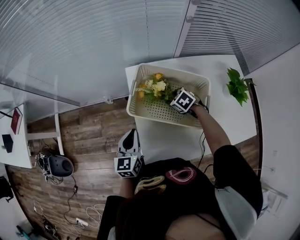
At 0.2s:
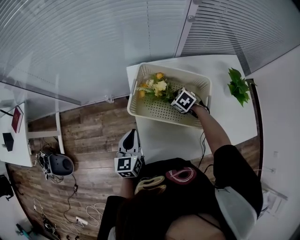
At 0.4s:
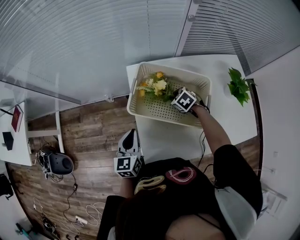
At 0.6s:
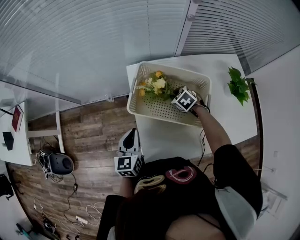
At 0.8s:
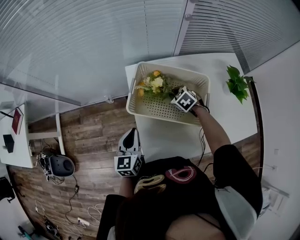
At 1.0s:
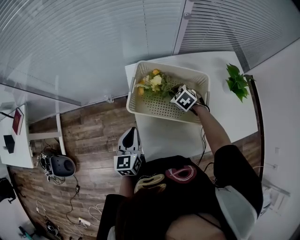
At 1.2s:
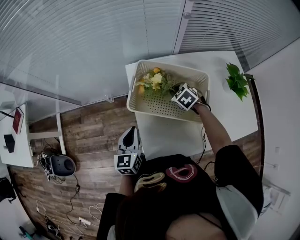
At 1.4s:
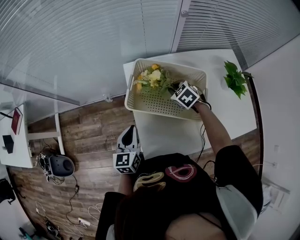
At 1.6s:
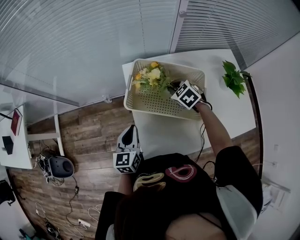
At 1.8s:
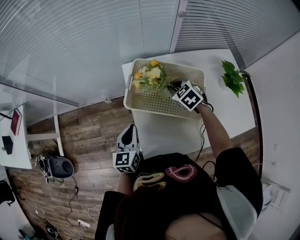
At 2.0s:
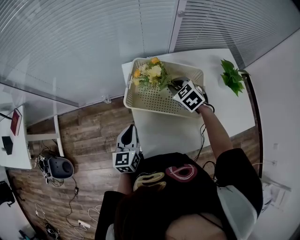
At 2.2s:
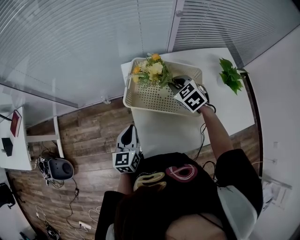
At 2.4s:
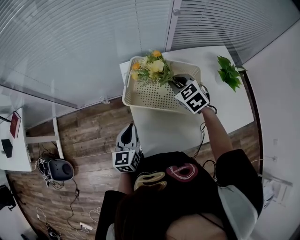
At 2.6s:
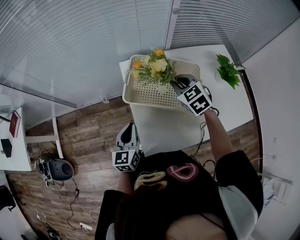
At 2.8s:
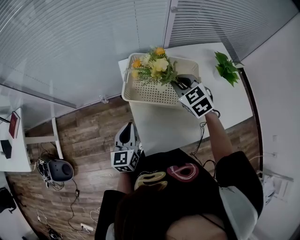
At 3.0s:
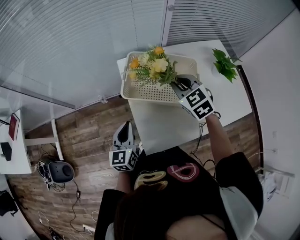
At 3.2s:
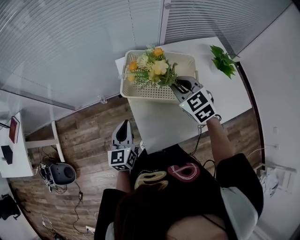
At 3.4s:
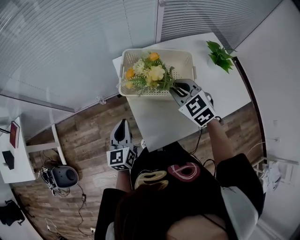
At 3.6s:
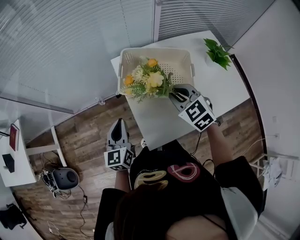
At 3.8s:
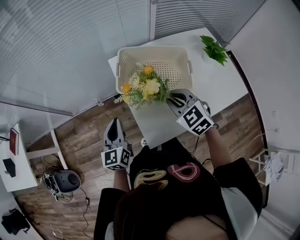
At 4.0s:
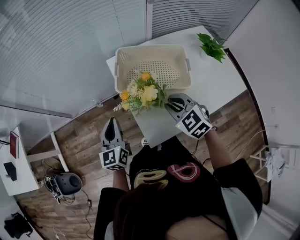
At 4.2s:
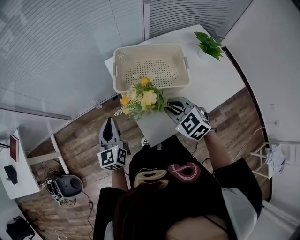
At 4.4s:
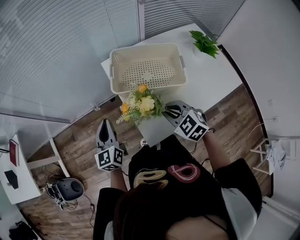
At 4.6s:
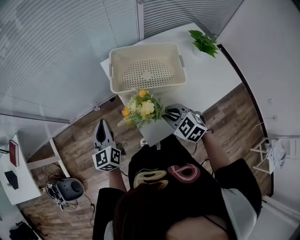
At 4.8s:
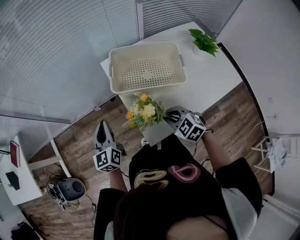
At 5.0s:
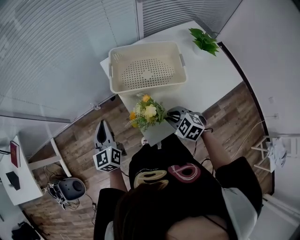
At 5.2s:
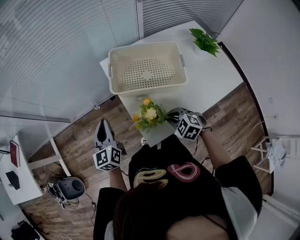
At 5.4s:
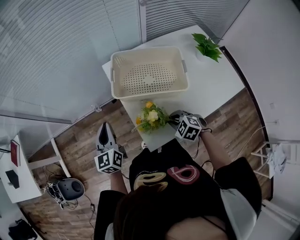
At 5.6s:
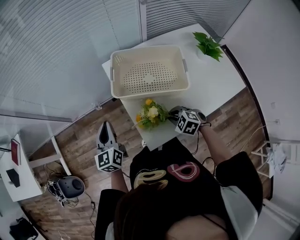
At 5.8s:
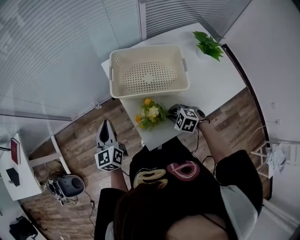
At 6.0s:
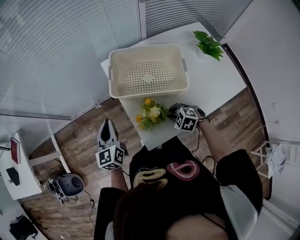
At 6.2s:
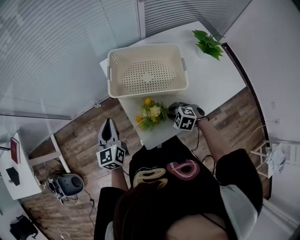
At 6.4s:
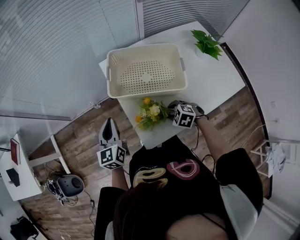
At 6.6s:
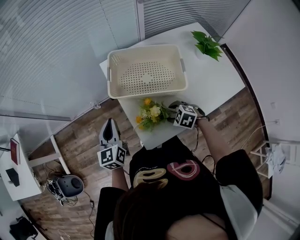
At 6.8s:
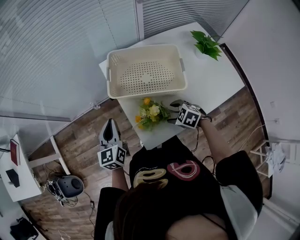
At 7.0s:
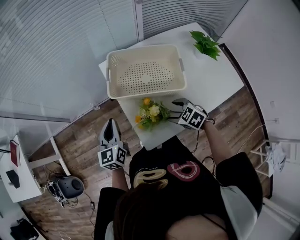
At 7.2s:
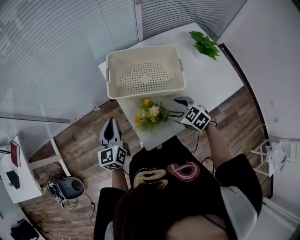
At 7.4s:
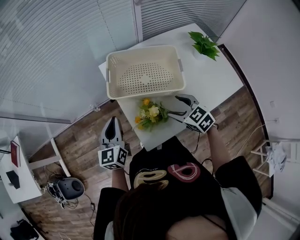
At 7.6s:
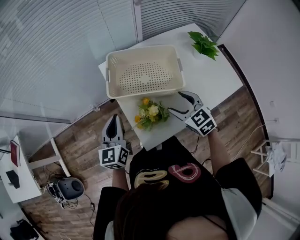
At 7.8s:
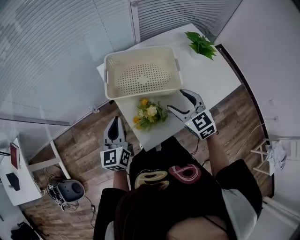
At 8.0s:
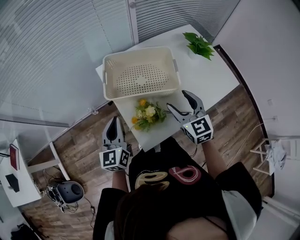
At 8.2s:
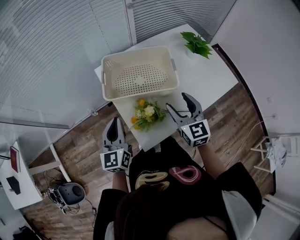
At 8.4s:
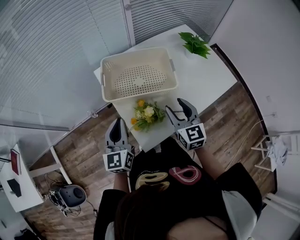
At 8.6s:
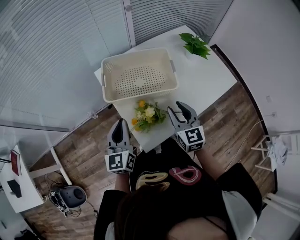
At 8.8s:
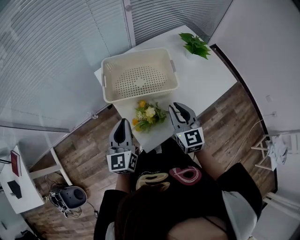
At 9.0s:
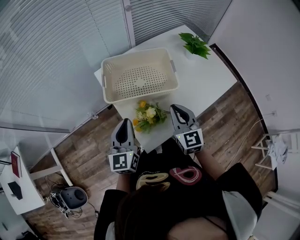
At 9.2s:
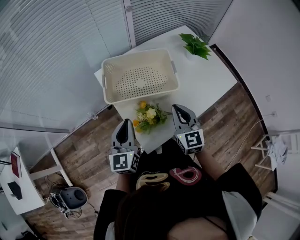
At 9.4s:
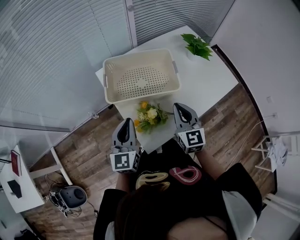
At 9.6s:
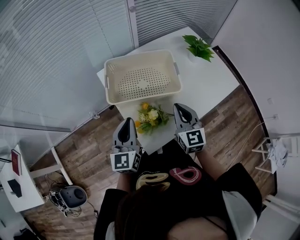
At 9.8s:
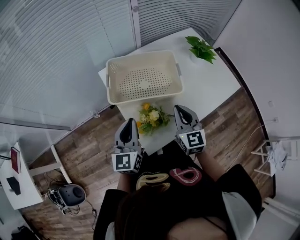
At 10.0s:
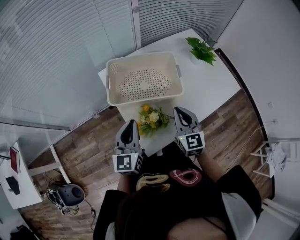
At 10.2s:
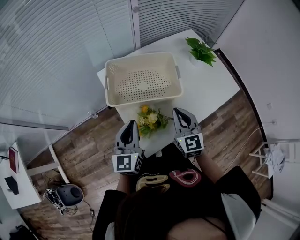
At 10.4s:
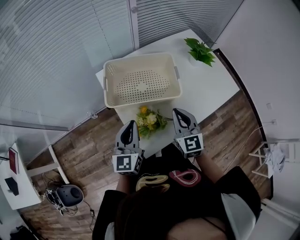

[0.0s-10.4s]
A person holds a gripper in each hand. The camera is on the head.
0.0s to 1.4s: The right gripper goes roughly 5 cm upward, and closes.
1.4s to 3.0s: The right gripper shifts approximately 15 cm upward and backward, and turns by about 20 degrees.
3.0s to 4.4s: The left gripper heads to the left, covering about 10 cm, while the right gripper is displaced backward by about 15 cm.
4.4s to 6.0s: The right gripper moves downward, roughly 15 cm, and rotates some 30 degrees.
6.0s to 7.4s: The right gripper is displaced upward by some 10 cm, turns by approximately 30 degrees, and opens.
7.4s to 9.0s: The right gripper shifts roughly 5 cm upward, turns by about 40 degrees, and closes up. The left gripper moves to the right, some 5 cm.
9.0s to 10.4s: The grippers make only small movements.

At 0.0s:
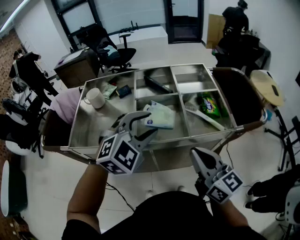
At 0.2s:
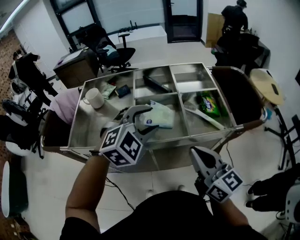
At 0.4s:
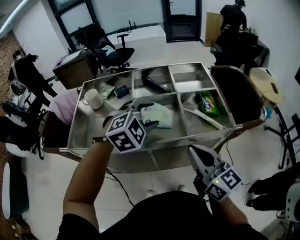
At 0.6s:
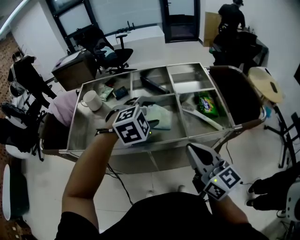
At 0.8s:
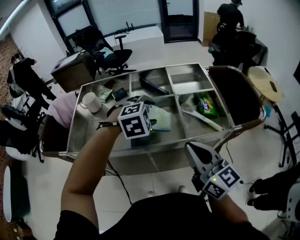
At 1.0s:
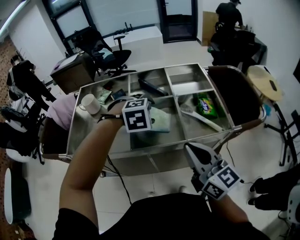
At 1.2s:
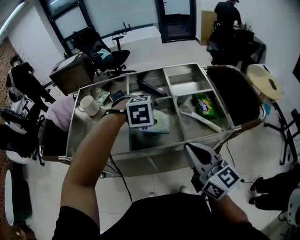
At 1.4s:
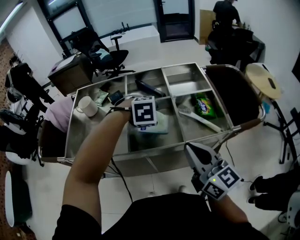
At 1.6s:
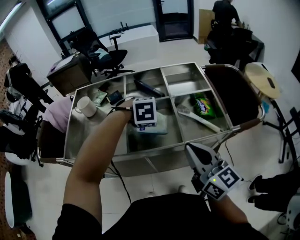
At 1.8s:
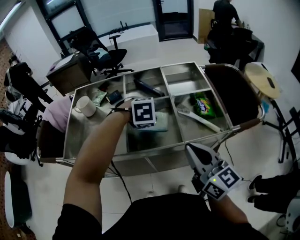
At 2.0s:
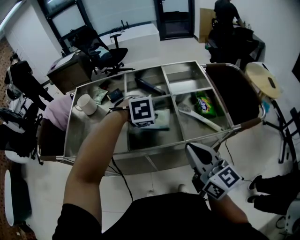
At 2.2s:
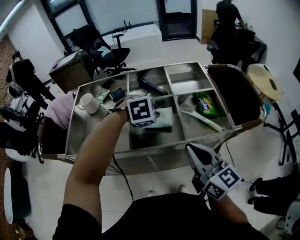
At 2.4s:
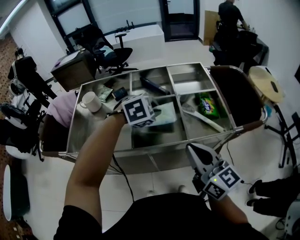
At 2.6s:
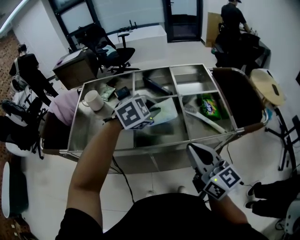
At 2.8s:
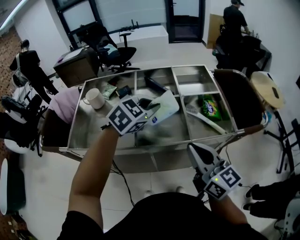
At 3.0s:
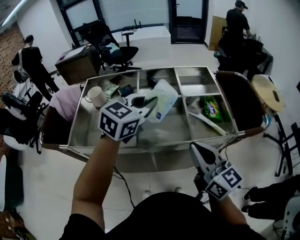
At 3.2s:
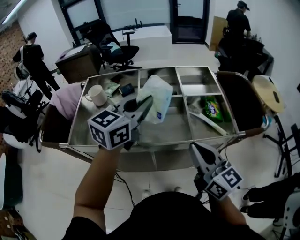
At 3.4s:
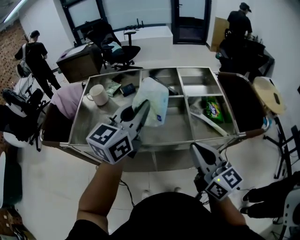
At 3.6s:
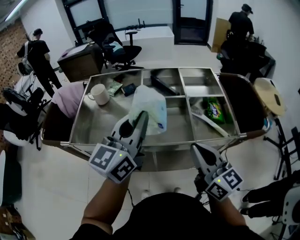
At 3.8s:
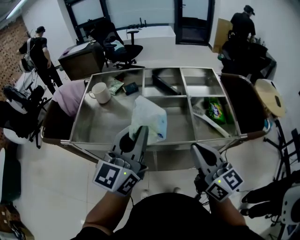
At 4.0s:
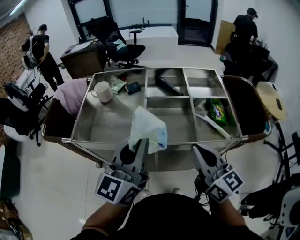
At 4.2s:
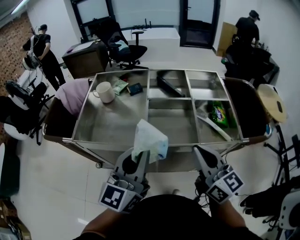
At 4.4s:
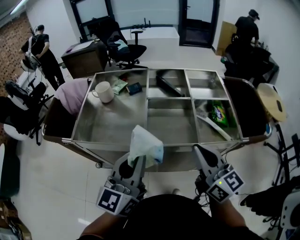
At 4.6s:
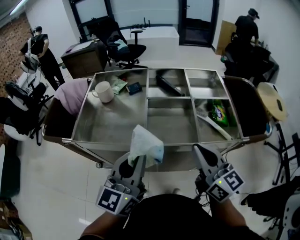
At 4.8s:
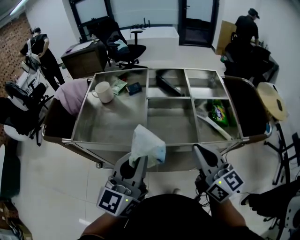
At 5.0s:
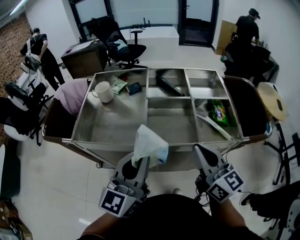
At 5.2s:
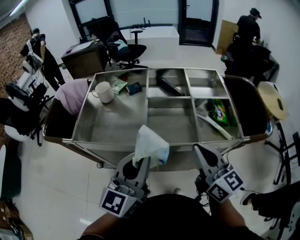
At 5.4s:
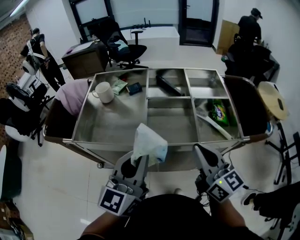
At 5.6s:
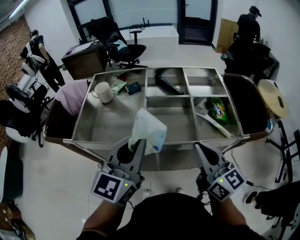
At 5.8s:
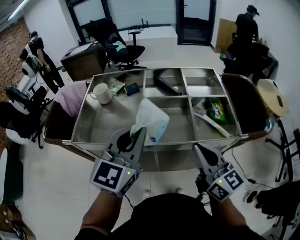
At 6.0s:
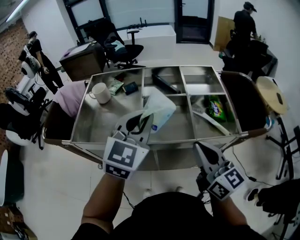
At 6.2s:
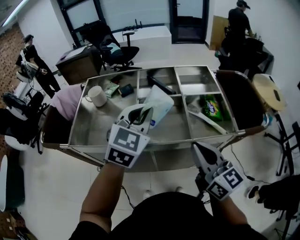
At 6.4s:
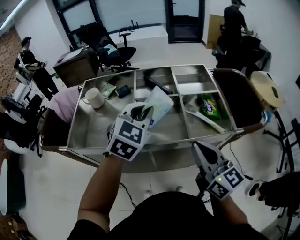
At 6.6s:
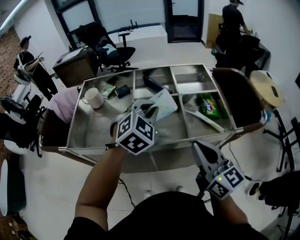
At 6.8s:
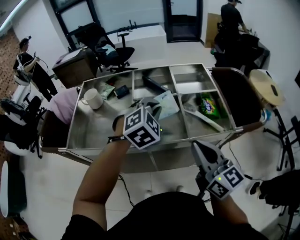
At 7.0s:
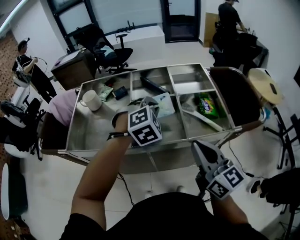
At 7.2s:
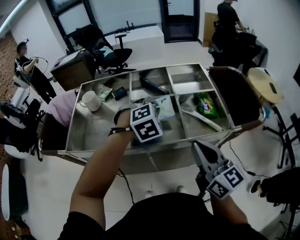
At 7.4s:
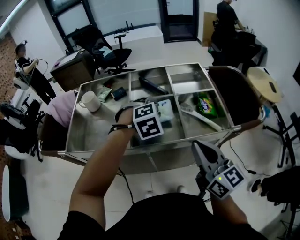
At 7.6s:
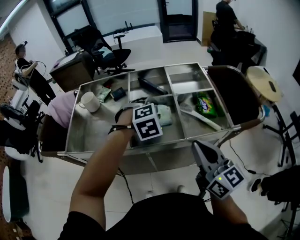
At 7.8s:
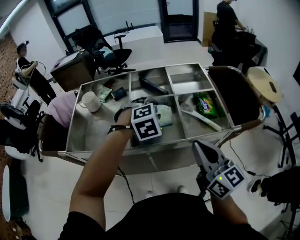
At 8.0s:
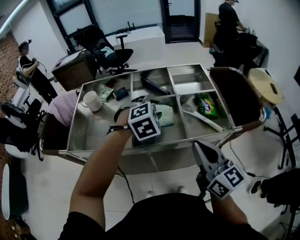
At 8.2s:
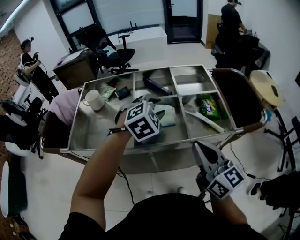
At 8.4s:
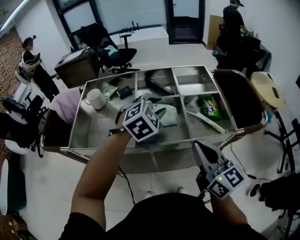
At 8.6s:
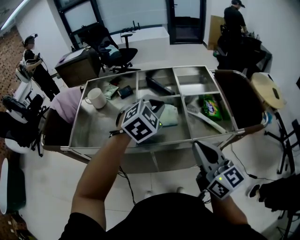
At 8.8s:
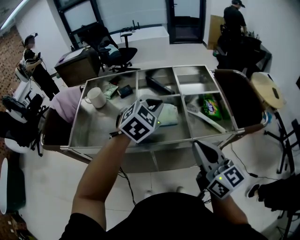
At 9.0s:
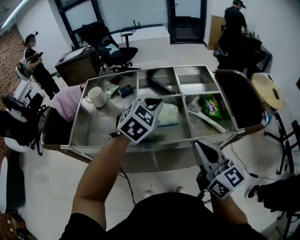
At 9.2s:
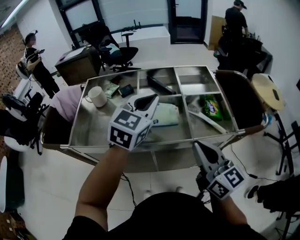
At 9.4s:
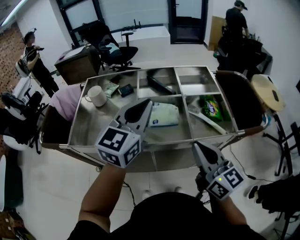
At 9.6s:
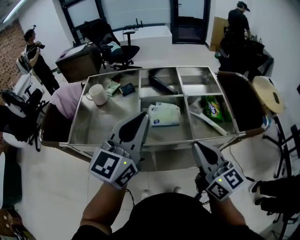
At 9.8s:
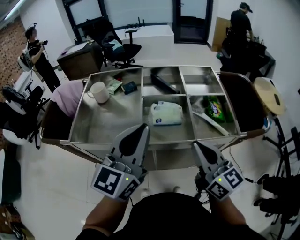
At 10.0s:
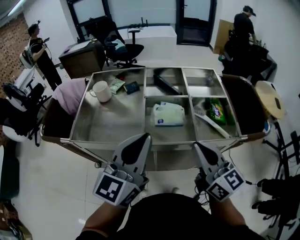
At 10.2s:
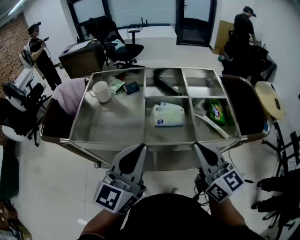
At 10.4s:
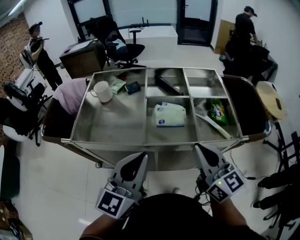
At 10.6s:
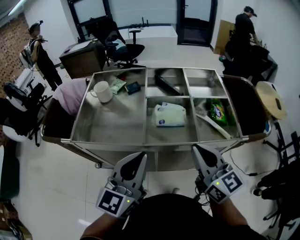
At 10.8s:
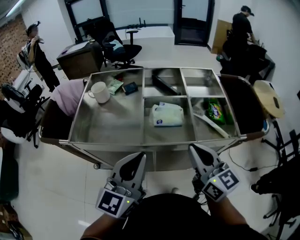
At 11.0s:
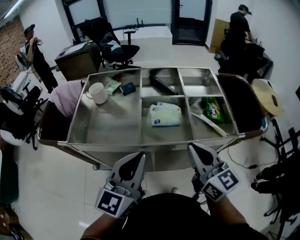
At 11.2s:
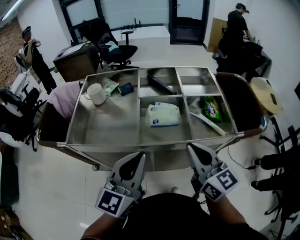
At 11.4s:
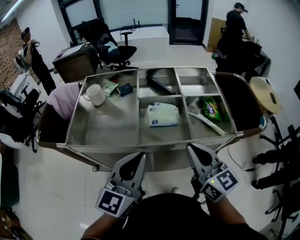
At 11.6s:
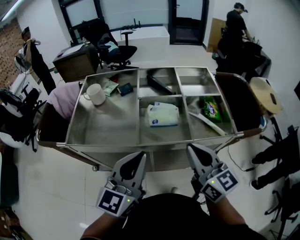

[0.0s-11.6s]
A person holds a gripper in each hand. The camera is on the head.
0.0s to 1.4s: The left gripper shifts roughly 15 cm downward and forward, and points its fingers some 40 degrees further downward.
1.4s to 2.8s: The left gripper moves upward, approximately 10 cm, tilts its fingers roughly 40 degrees upward, and closes up.
2.8s to 4.4s: The left gripper shifts about 20 cm backward and to the left, and angles its fingers upward, by some 40 degrees.
4.4s to 5.8s: The left gripper is displaced forward by about 5 cm, and swivels approximately 20 degrees.
5.8s to 7.2s: The left gripper shifts approximately 20 cm forward, downward and to the right, and points its fingers some 40 degrees further downward.
7.2s to 8.8s: The left gripper turns by roughly 30 degrees, and opens and closes again.
8.8s to 10.2s: The left gripper travels backward and to the left by roughly 20 cm, and angles its fingers upward, by about 40 degrees.
10.2s to 11.6s: The grippers make only small movements.

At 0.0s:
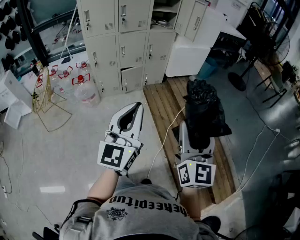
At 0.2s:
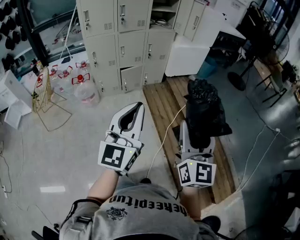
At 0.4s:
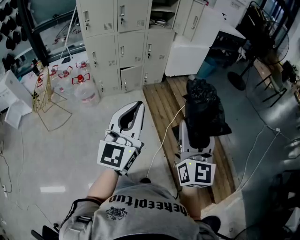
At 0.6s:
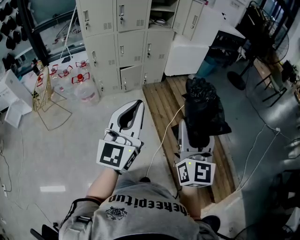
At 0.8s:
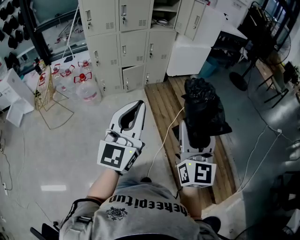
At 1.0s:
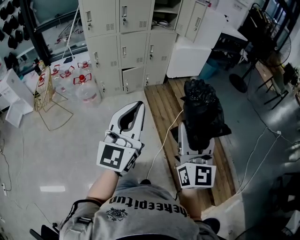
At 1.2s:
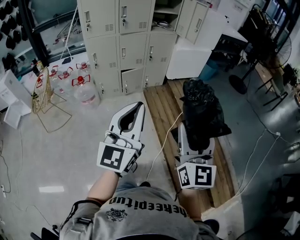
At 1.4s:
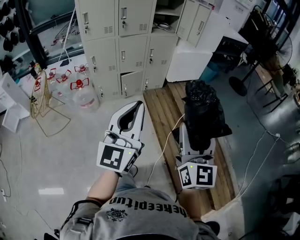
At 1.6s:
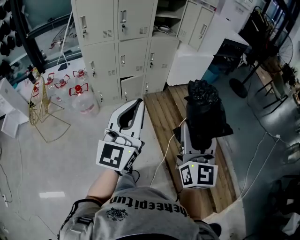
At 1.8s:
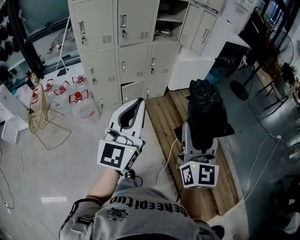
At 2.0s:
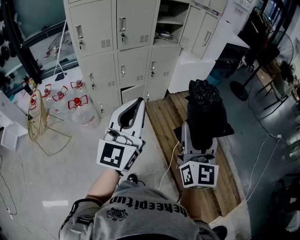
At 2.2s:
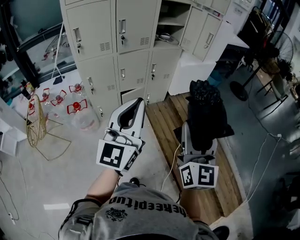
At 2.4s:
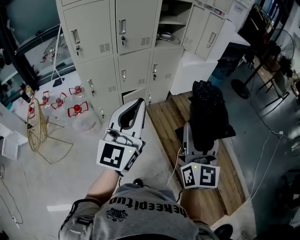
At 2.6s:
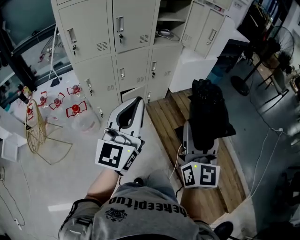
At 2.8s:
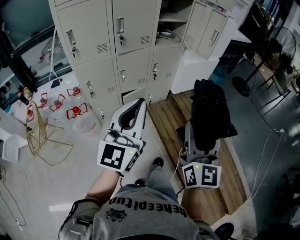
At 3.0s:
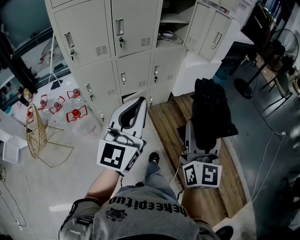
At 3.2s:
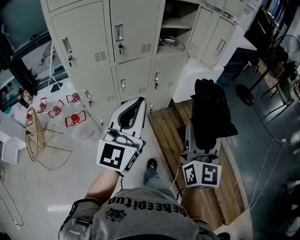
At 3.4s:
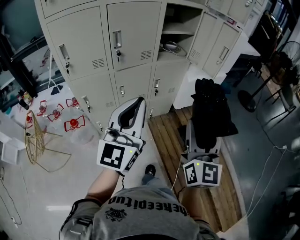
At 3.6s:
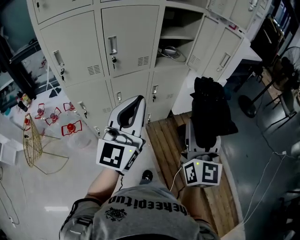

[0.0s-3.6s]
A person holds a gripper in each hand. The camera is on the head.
0.0s to 1.8s: Both grippers move forward and to the left, roughly 20 cm.
1.8s to 3.6s: The grippers both shift forward by about 35 cm.
